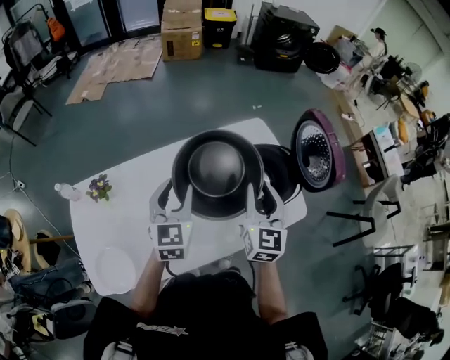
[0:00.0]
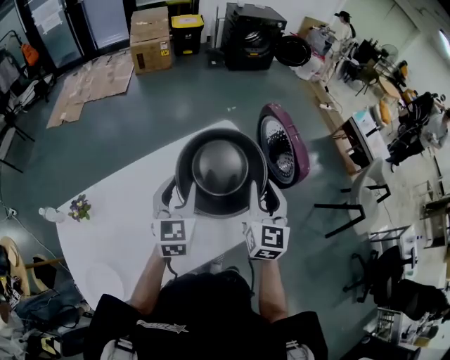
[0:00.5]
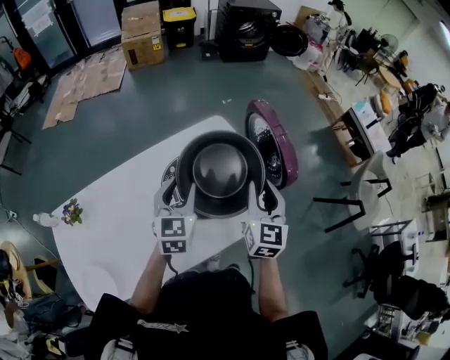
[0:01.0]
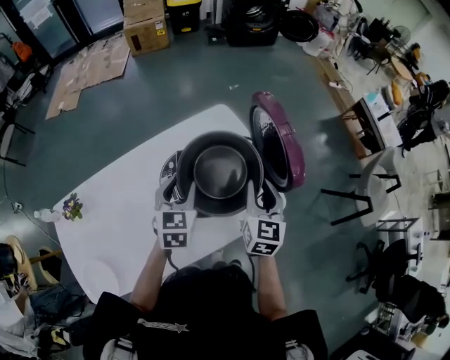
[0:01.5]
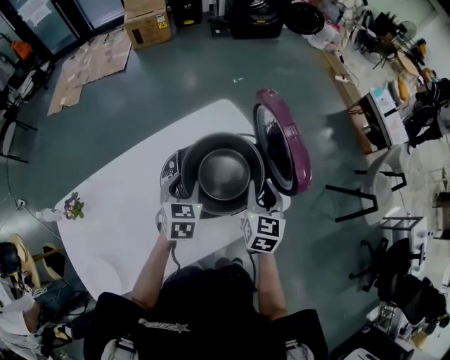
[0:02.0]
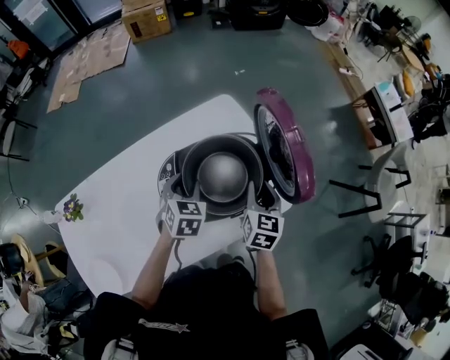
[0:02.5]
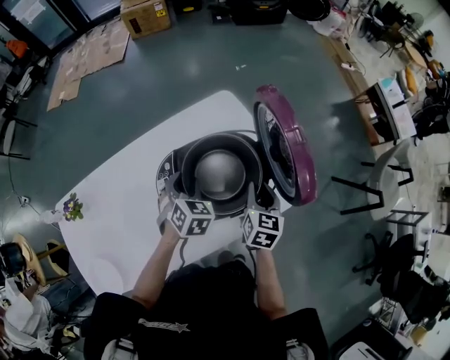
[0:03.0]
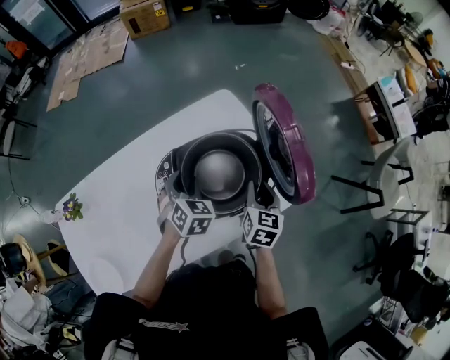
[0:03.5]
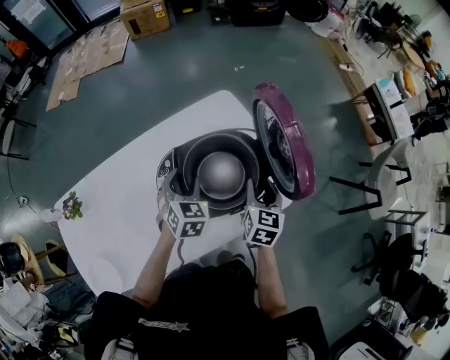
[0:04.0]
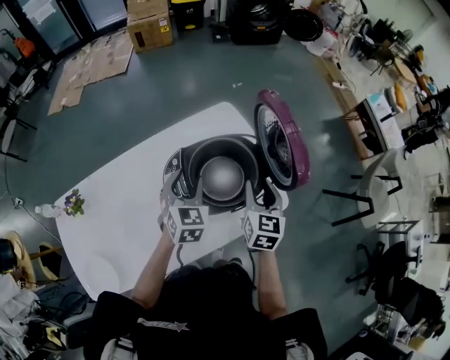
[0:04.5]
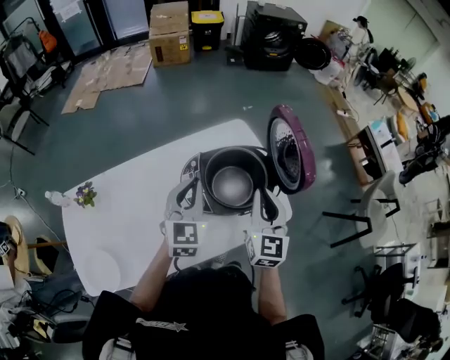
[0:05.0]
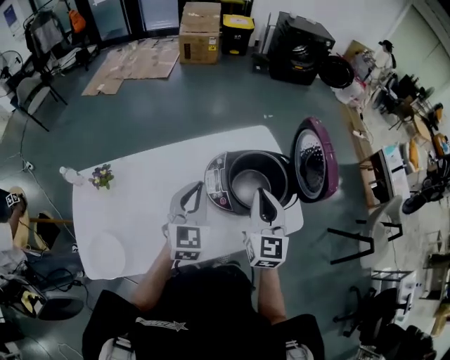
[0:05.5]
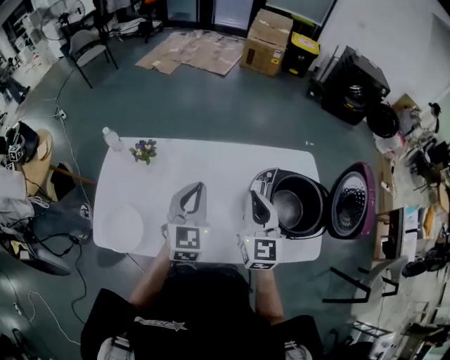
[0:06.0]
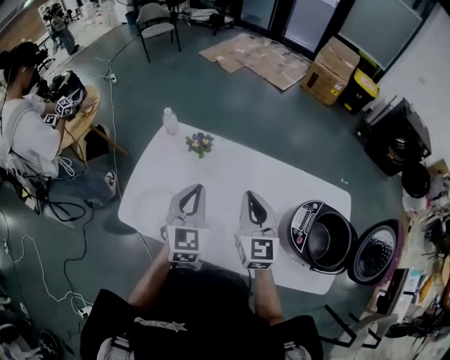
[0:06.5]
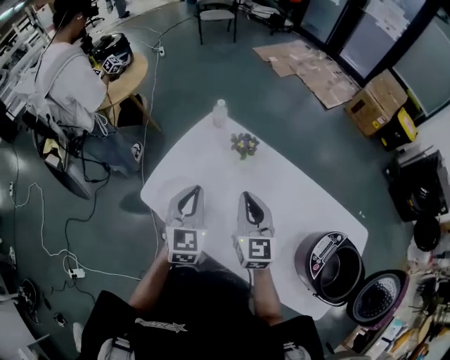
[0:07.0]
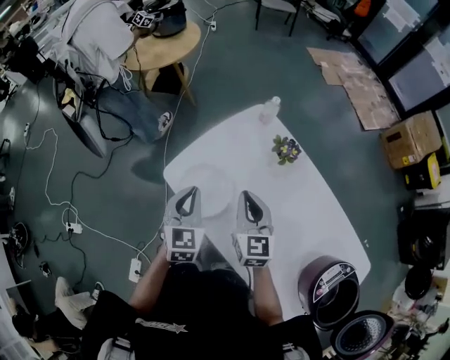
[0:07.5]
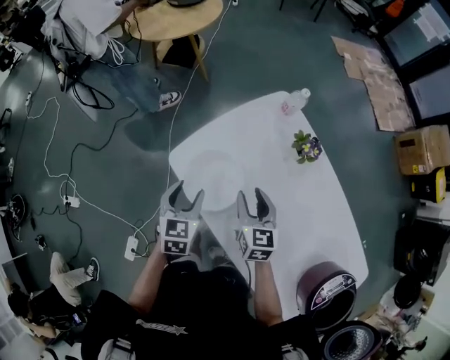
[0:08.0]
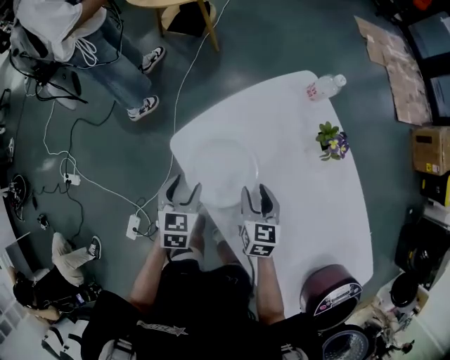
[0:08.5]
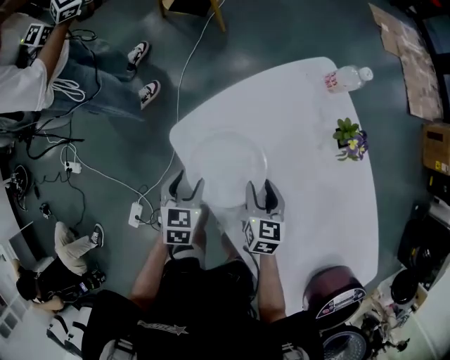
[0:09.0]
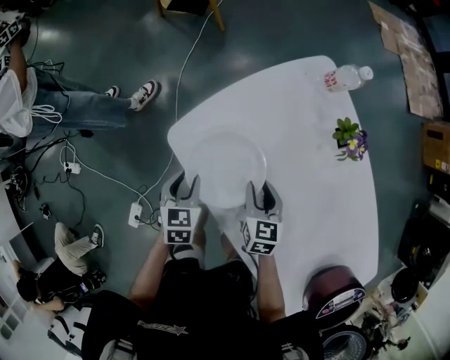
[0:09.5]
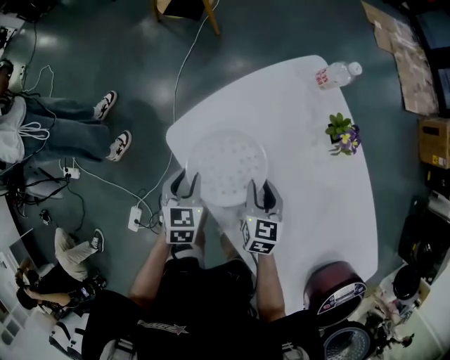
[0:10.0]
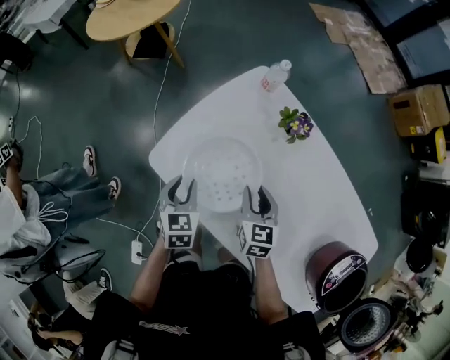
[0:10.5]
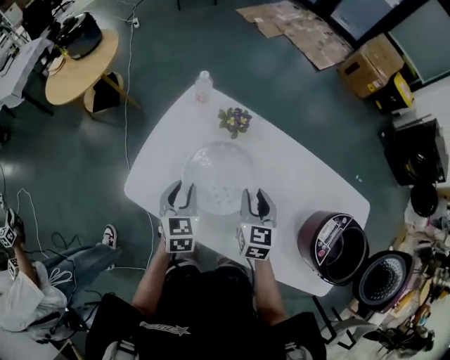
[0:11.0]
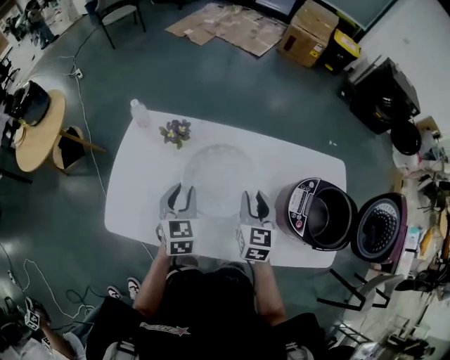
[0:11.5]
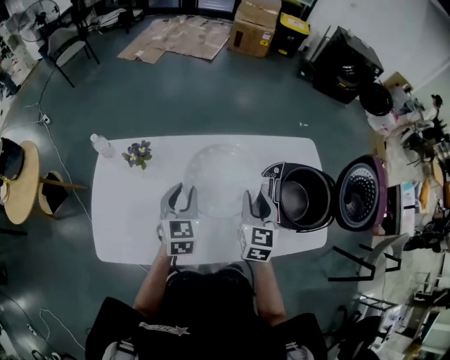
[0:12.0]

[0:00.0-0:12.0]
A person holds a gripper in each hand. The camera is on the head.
0:00.0 to 0:02.0: The right gripper is displaced to the right and downward by roughly 20 cm, and swivels about 20 degrees; the left gripper is displaced to the right, downward and forward by some 25 cm, and turns by about 30 degrees.
0:02.0 to 0:04.0: The right gripper heads downward, covering roughly 5 cm.
0:04.0 to 0:06.0: The right gripper ends up roughly 35 cm from where it was, rotates approximately 50 degrees, and closes. The left gripper shifts by approximately 30 cm, turns by about 40 degrees, and closes up.
0:06.0 to 0:08.0: The pair of grippers is taken roughly 40 cm. The right gripper turns by approximately 60 degrees, and opens, while the left gripper changes its angle by approximately 60 degrees, and opens up.
0:08.0 to 0:10.0: Both grippers move downward, roughly 15 cm.
0:10.0 to 0:12.0: The two grippers travel together, about 40 cm. The left gripper swivels roughly 60 degrees. Meanwhile the right gripper changes its angle by approximately 60 degrees.

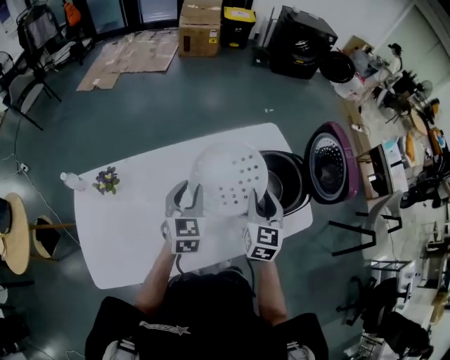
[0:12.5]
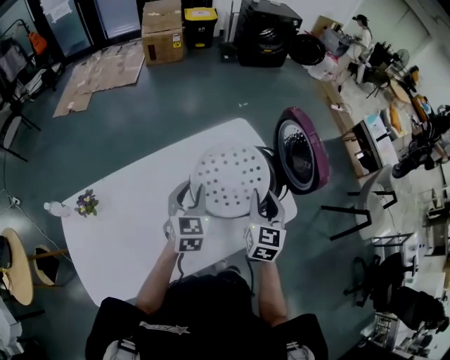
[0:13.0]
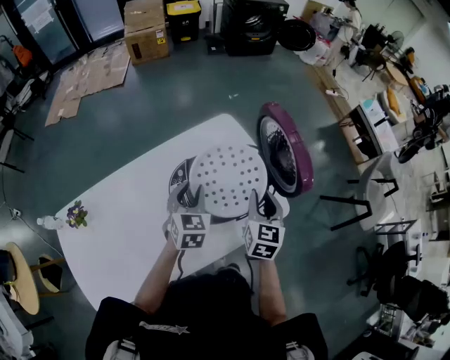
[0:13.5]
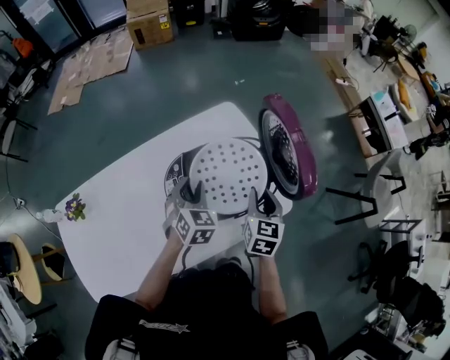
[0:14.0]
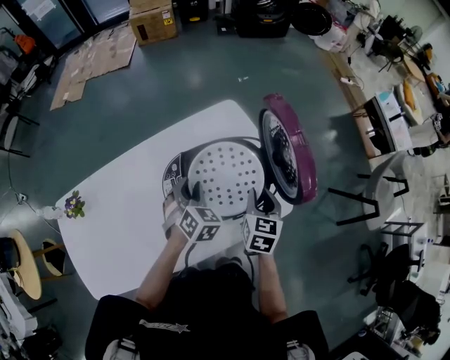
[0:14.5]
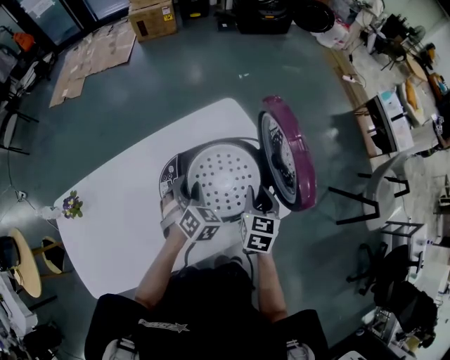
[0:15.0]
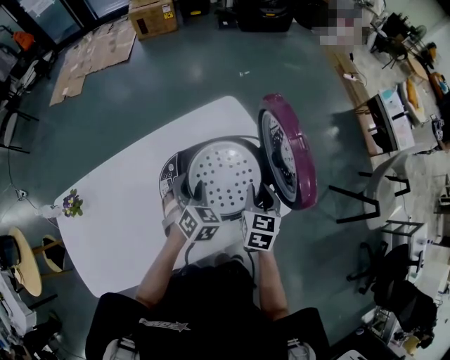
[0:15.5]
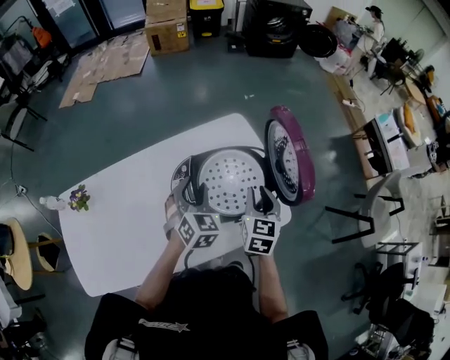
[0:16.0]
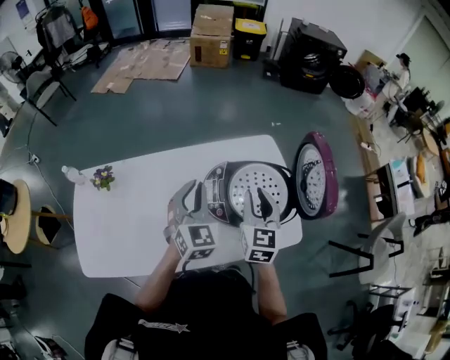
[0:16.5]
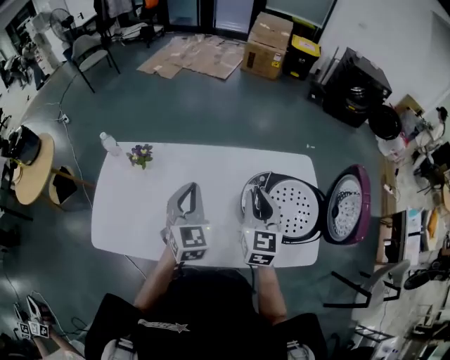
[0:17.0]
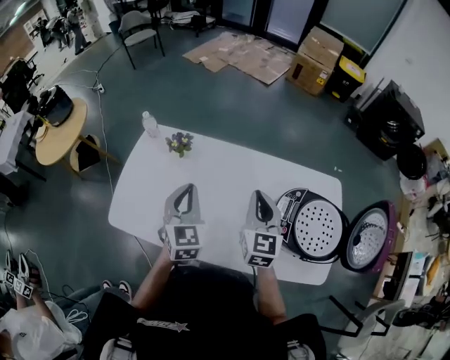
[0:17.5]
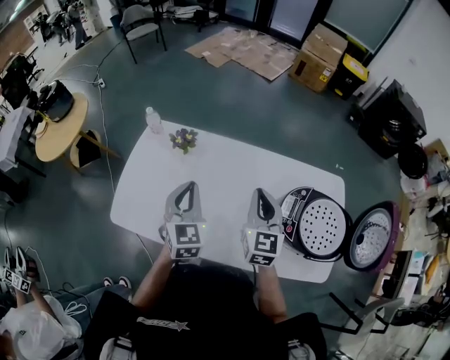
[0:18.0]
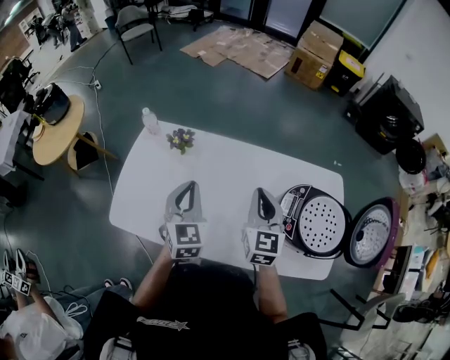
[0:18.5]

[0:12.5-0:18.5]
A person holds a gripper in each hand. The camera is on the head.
0:12.5 to 0:14.5: The right gripper heads to the right and downward, covering approximately 20 cm, and turns by about 20 degrees. The left gripper travels to the right, downward and forward by roughly 25 cm, and swivels about 40 degrees.
0:14.5 to 0:16.5: The left gripper heads upward and to the left, covering about 20 cm, and turns by approximately 30 degrees; the right gripper travels to the left and upward by approximately 20 cm, and turns by approximately 30 degrees.
0:16.5 to 0:18.5: The left gripper shifts by some 30 cm, and swivels some 30 degrees, while the right gripper changes place by some 30 cm, and turns by approximately 30 degrees.

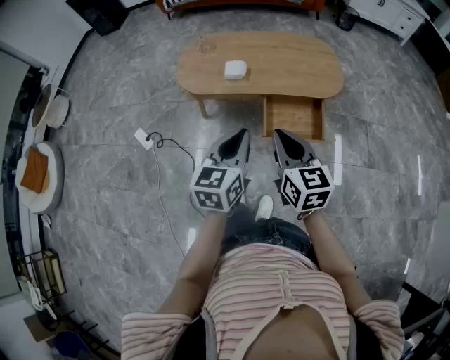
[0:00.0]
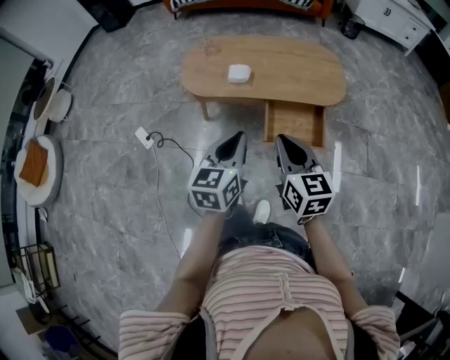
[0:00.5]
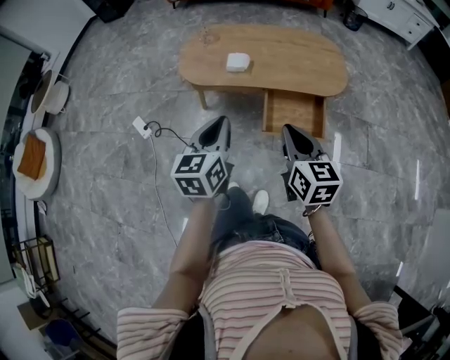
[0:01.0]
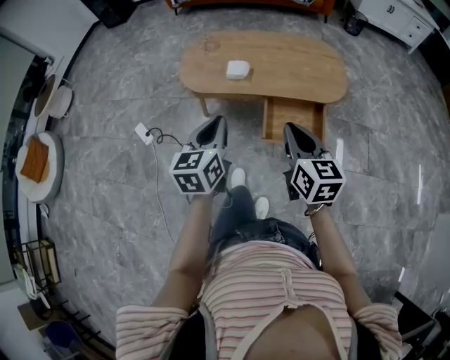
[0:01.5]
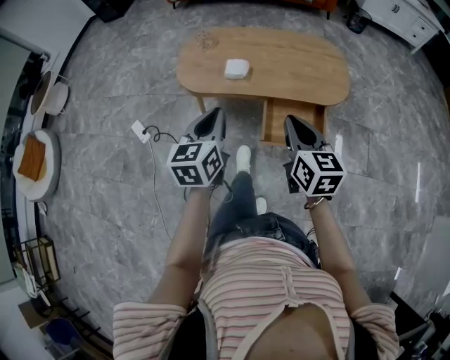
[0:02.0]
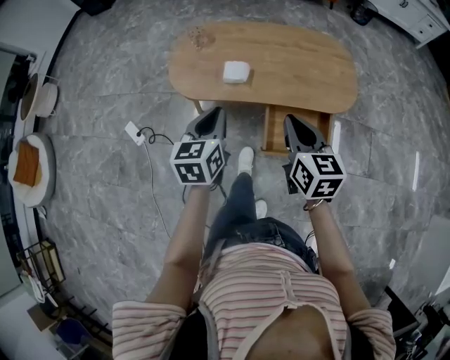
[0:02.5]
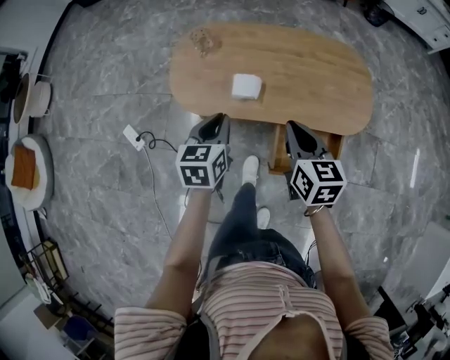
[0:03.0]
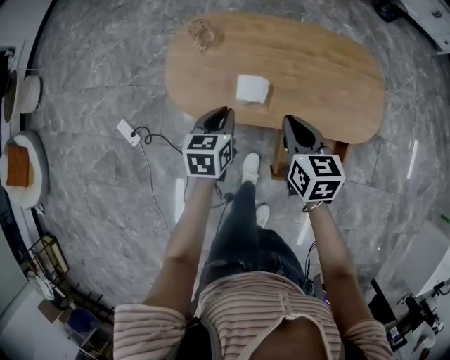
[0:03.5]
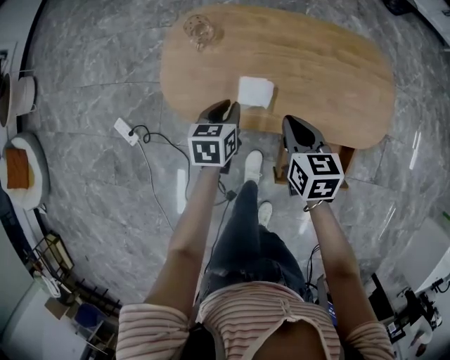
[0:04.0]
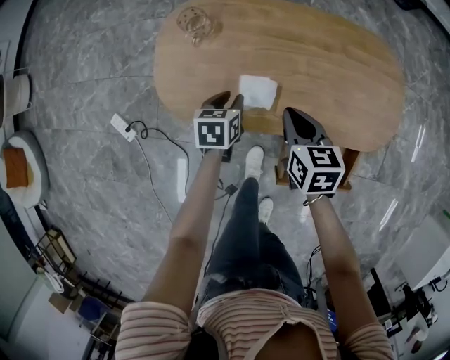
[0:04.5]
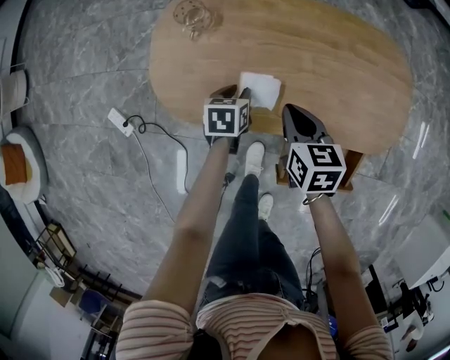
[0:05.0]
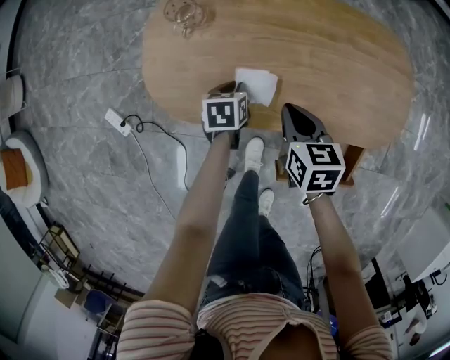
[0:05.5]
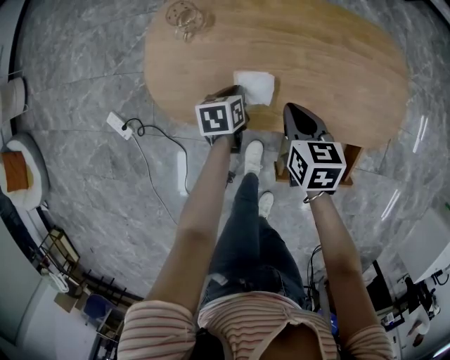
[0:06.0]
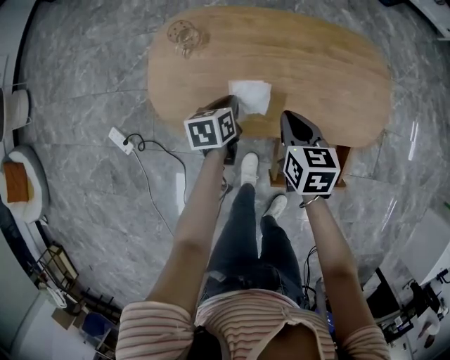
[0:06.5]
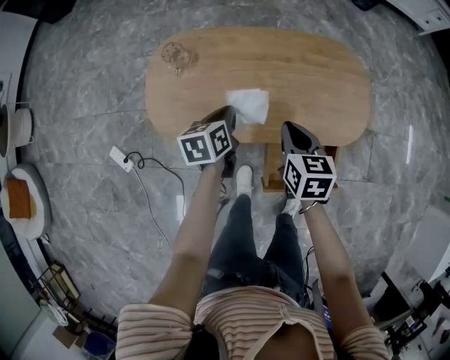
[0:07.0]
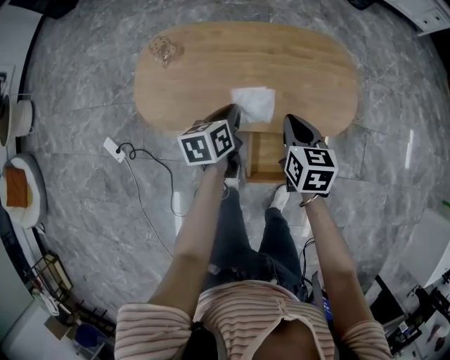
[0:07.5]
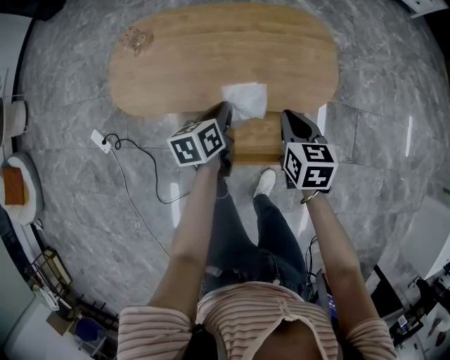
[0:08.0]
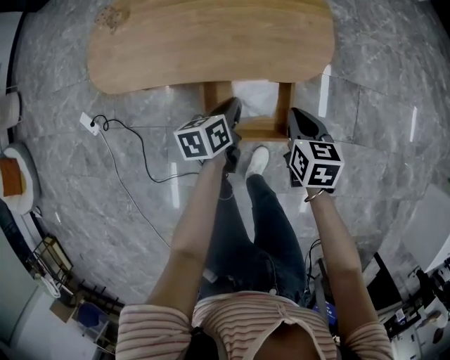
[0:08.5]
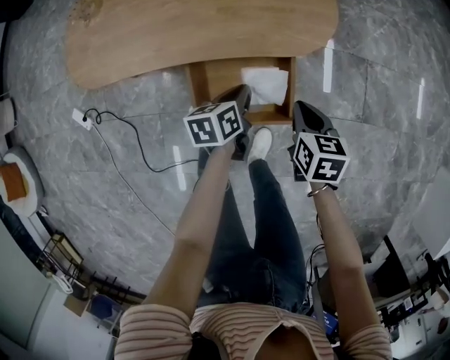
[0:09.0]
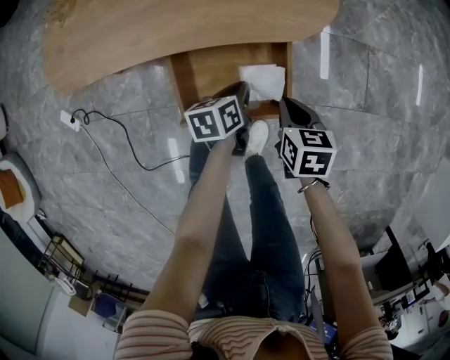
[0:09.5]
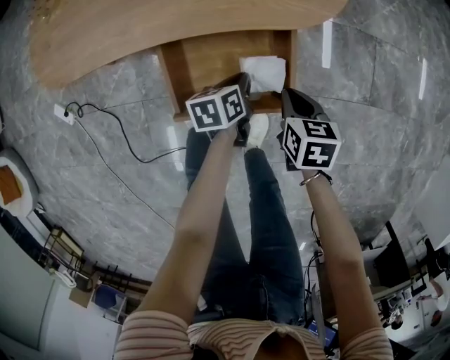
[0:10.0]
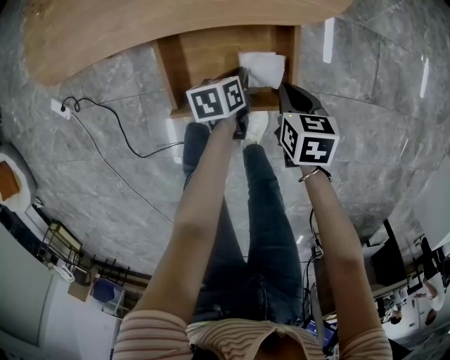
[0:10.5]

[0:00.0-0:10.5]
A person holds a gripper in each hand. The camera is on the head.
0:00.0 to 0:02.0: Both grippers move forward, some 10 cm.
0:02.0 to 0:04.0: Both grippers move forward and downward, about 40 cm. The right gripper changes its angle by about 20 degrees. The left gripper turns by some 30 degrees.
0:04.0 to 0:06.5: The left gripper reaches some 15 cm downward, then returns; the right gripper moves some 10 cm downward and comes back.
0:06.5 to 0:08.5: Both grippers move to the right and backward, roughly 40 cm.
0:08.5 to 0:10.5: Both grippers travel together downward, some 20 cm.
